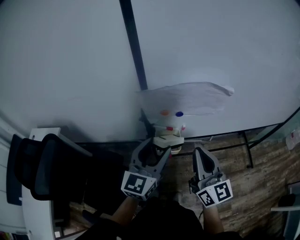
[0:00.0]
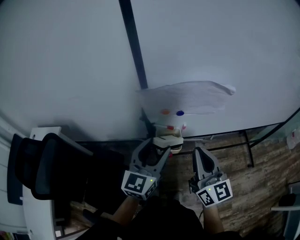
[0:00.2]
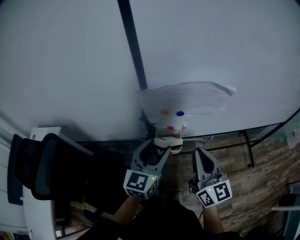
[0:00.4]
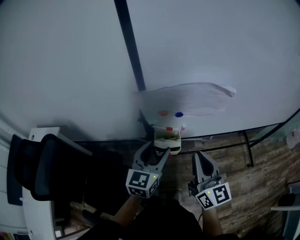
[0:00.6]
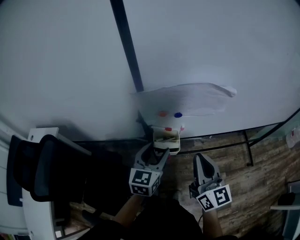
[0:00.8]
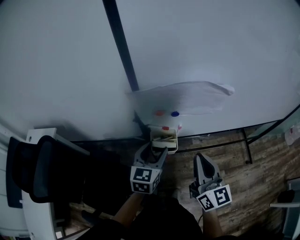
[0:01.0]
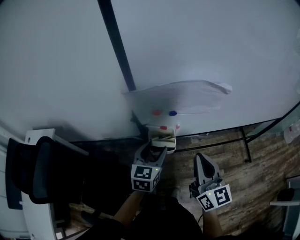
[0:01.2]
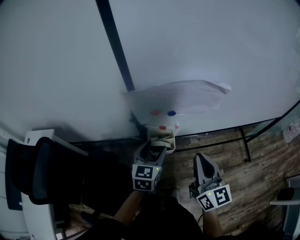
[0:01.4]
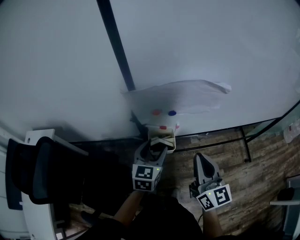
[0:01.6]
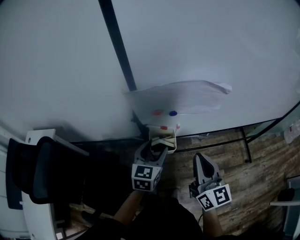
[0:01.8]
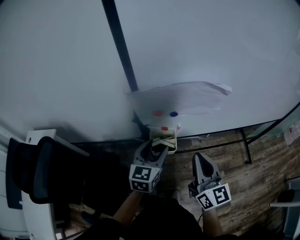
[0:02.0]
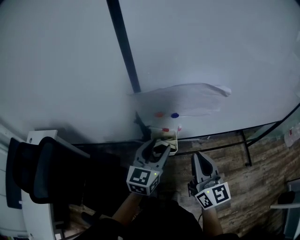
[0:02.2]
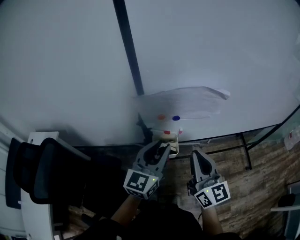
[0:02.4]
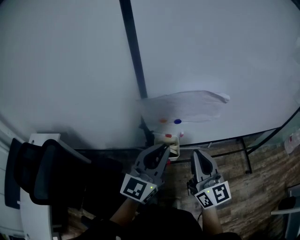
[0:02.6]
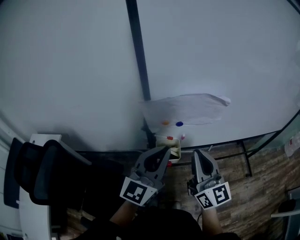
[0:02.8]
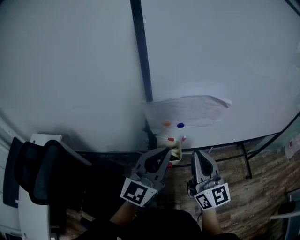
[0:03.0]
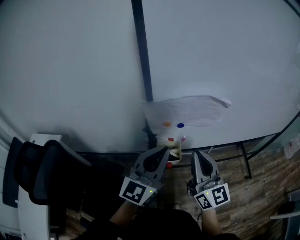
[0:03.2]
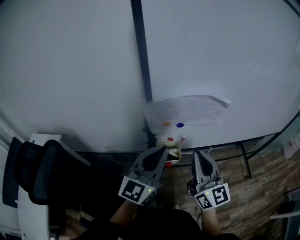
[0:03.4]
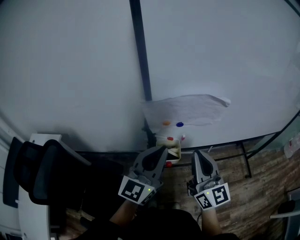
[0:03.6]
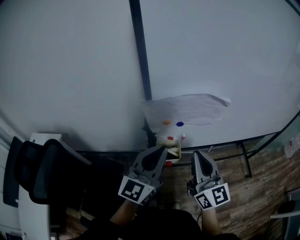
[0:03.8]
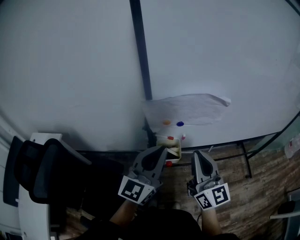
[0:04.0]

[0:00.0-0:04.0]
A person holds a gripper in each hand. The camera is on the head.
0:00.0 to 0:01.4: The left gripper goes about 10 cm downward, and changes its angle by approximately 20 degrees.
0:01.4 to 0:02.6: The left gripper goes approximately 15 cm upward, rotates some 30 degrees, and closes up. The right gripper is displaced upward by roughly 5 cm.
0:02.6 to 0:04.0: The grippers stay close to where they were, moving slightly.

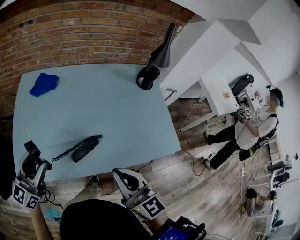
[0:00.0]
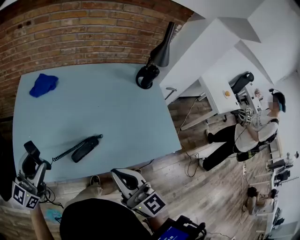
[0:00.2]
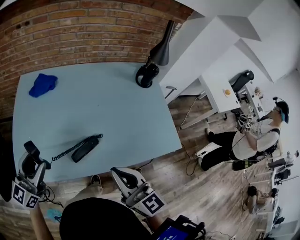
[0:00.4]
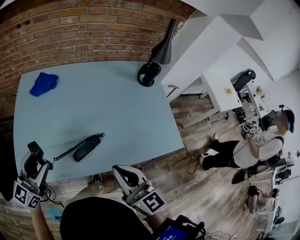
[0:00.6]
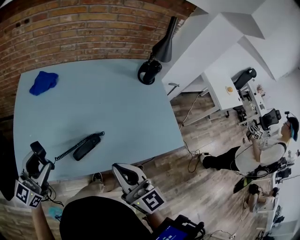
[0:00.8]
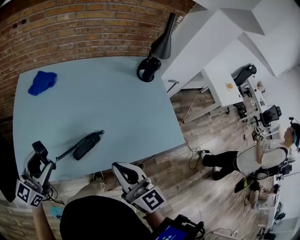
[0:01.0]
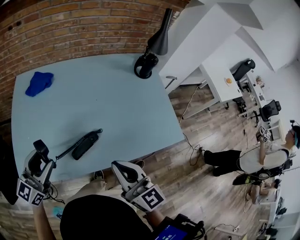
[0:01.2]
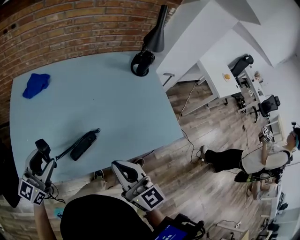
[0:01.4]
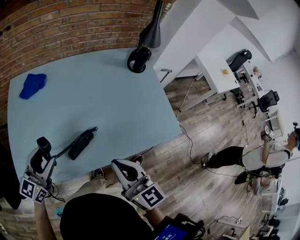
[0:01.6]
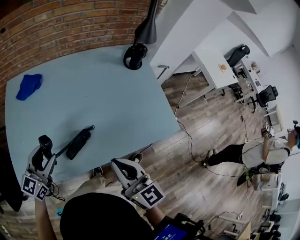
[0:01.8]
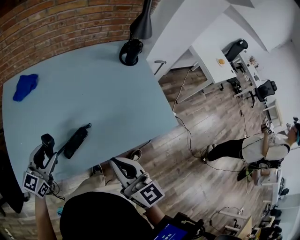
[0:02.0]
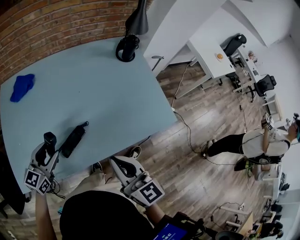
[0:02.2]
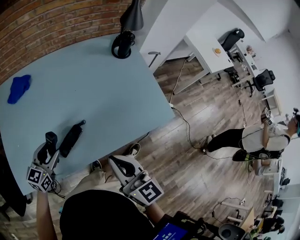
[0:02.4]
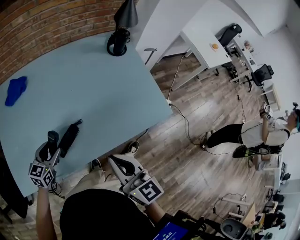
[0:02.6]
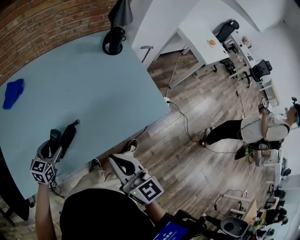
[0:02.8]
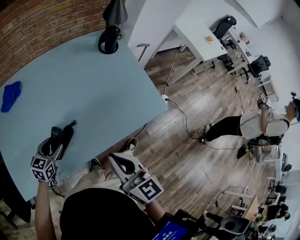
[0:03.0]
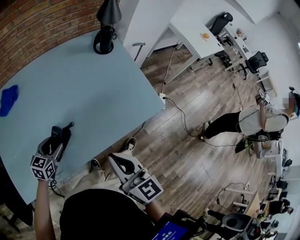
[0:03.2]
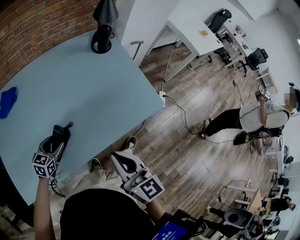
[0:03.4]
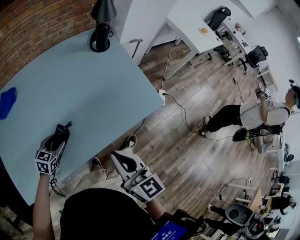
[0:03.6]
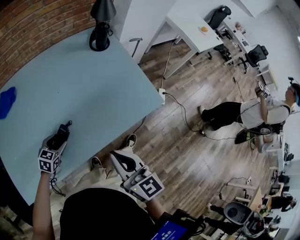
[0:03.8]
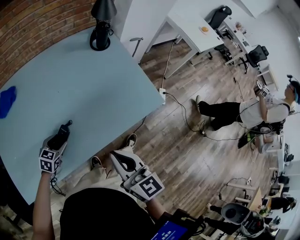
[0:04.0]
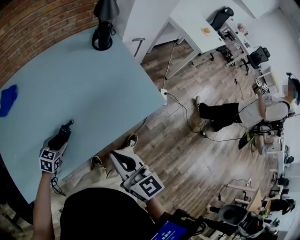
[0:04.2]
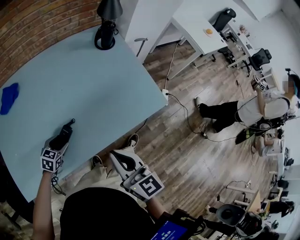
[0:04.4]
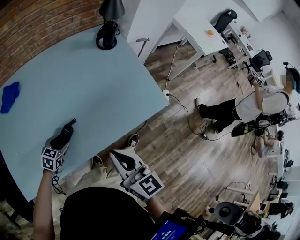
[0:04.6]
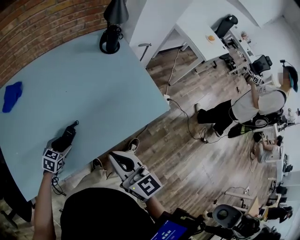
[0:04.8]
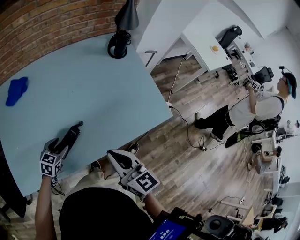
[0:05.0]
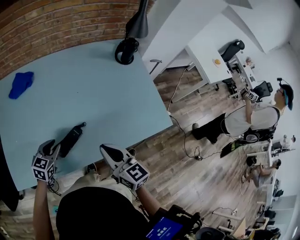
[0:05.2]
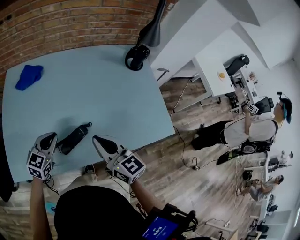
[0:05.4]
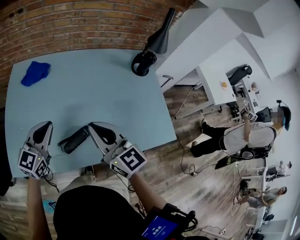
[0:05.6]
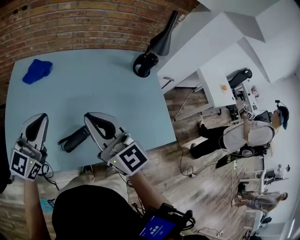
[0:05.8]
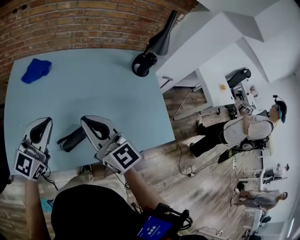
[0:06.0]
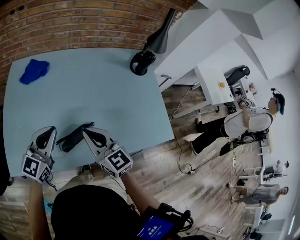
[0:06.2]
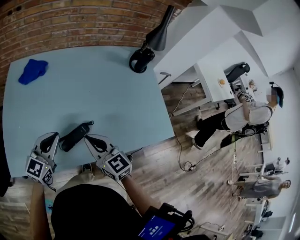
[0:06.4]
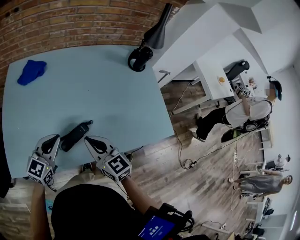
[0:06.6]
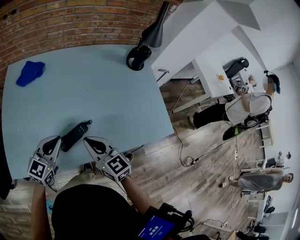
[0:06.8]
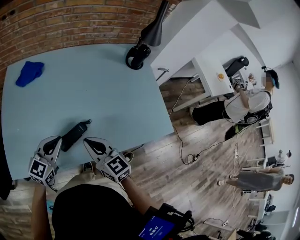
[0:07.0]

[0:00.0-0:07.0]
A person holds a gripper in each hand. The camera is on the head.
0:00.0 to 0:01.4: The left gripper moves approximately 5 cm. Meanwhile the right gripper changes place by some 5 cm.
0:01.4 to 0:02.8: The right gripper goes roughly 5 cm to the right, while the left gripper is displaced downward by some 20 cm, and changes its angle by some 30 degrees.
0:02.8 to 0:04.2: The left gripper moves downward, approximately 5 cm.
0:04.2 to 0:05.6: The left gripper heads upward, covering roughly 25 cm, tips its fingers upward by some 40 degrees, and closes its fingers. Meanwhile the right gripper moves to the left, forward and upward, approximately 20 cm, and changes its angle by about 30 degrees.
0:05.6 to 0:07.0: The right gripper goes some 10 cm downward. Meanwhile the left gripper heads downward and backward, covering some 10 cm.

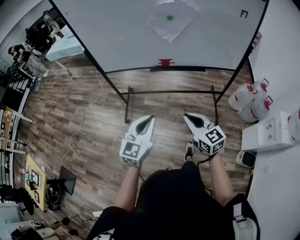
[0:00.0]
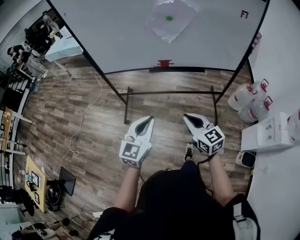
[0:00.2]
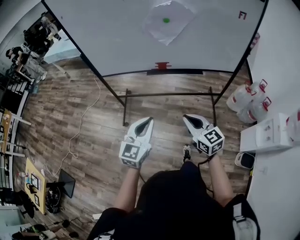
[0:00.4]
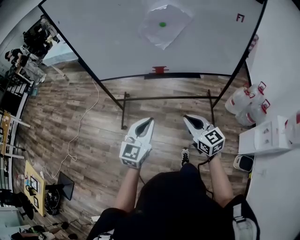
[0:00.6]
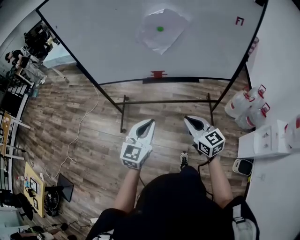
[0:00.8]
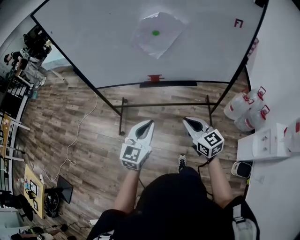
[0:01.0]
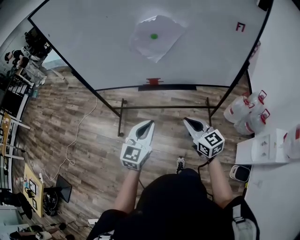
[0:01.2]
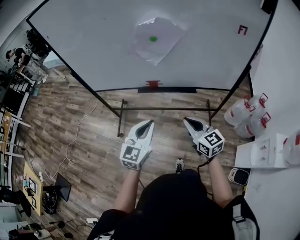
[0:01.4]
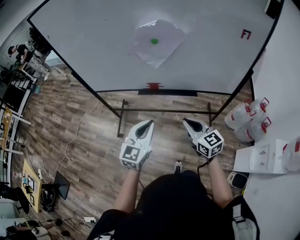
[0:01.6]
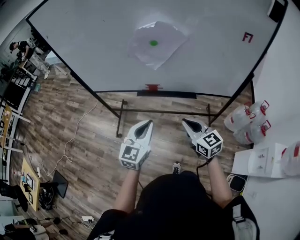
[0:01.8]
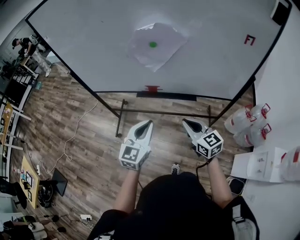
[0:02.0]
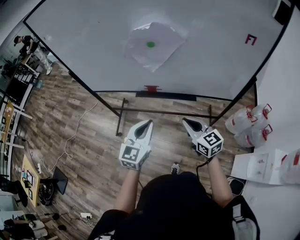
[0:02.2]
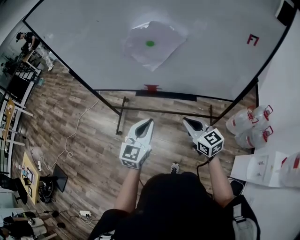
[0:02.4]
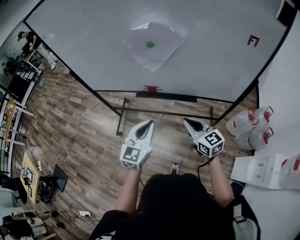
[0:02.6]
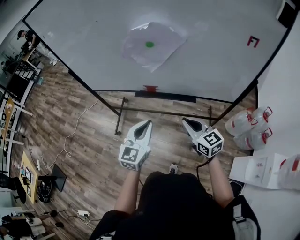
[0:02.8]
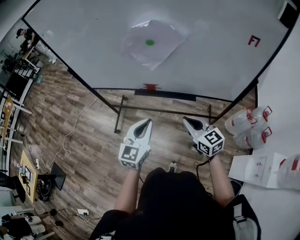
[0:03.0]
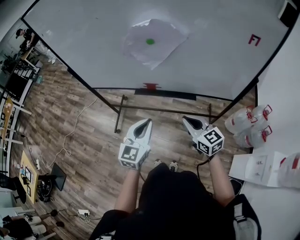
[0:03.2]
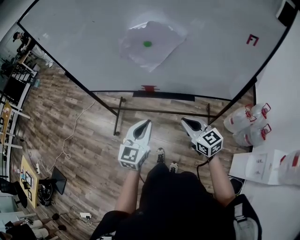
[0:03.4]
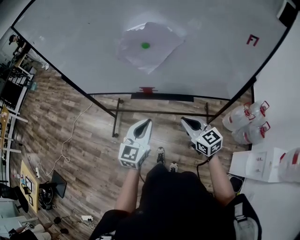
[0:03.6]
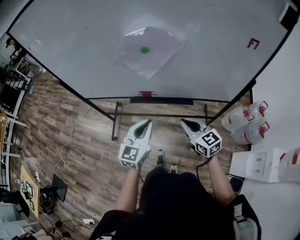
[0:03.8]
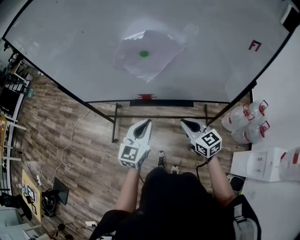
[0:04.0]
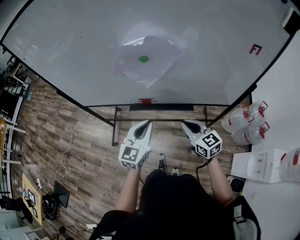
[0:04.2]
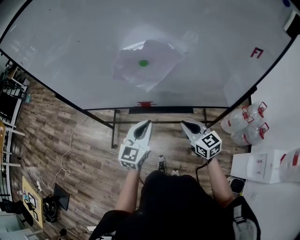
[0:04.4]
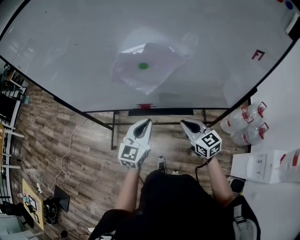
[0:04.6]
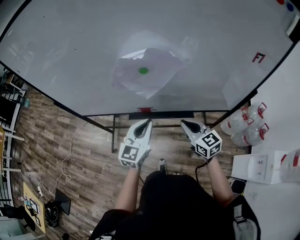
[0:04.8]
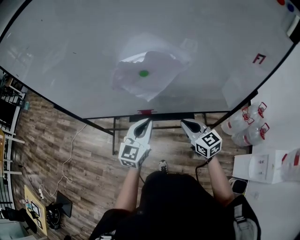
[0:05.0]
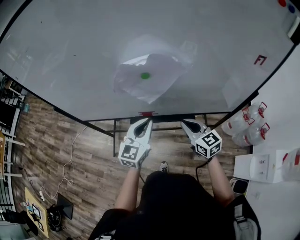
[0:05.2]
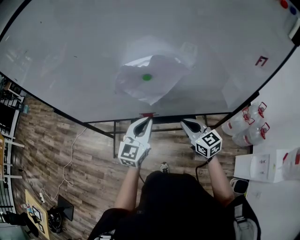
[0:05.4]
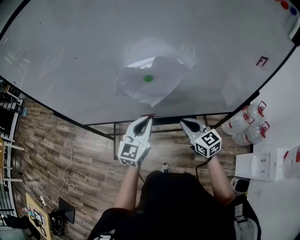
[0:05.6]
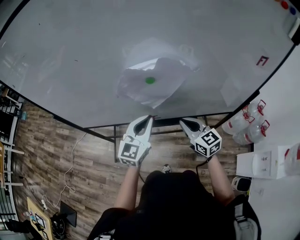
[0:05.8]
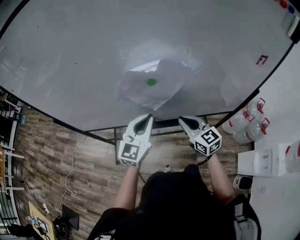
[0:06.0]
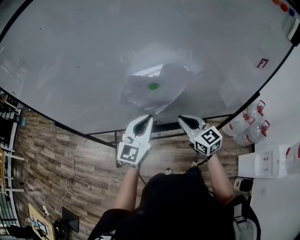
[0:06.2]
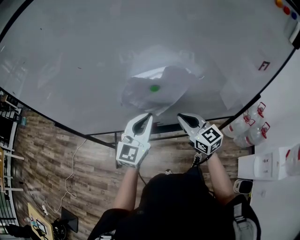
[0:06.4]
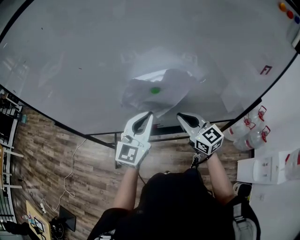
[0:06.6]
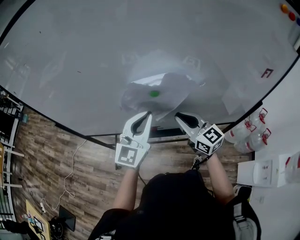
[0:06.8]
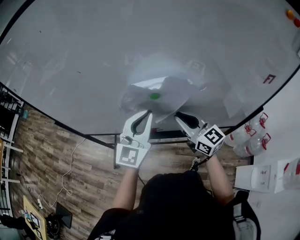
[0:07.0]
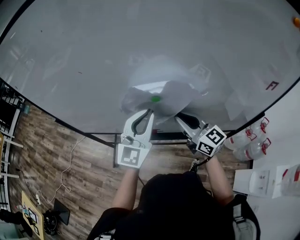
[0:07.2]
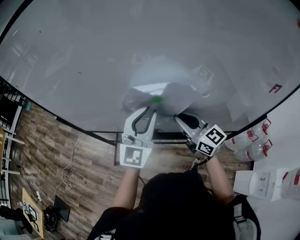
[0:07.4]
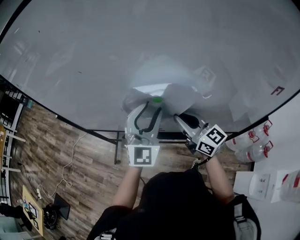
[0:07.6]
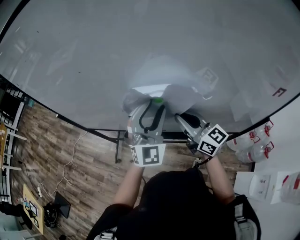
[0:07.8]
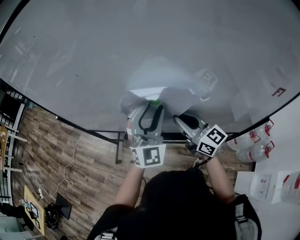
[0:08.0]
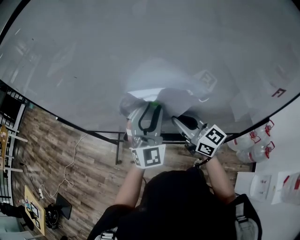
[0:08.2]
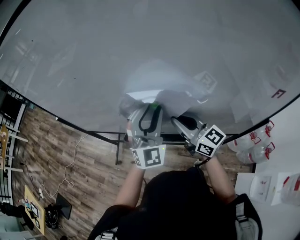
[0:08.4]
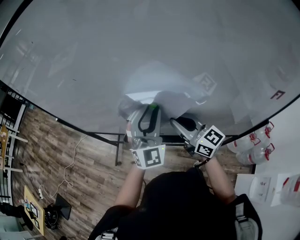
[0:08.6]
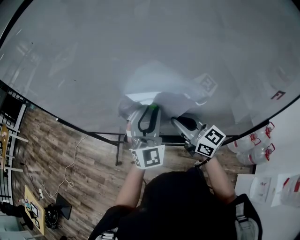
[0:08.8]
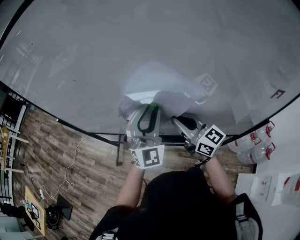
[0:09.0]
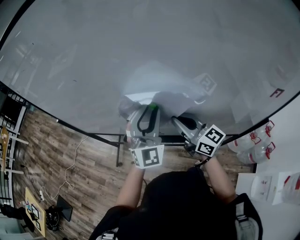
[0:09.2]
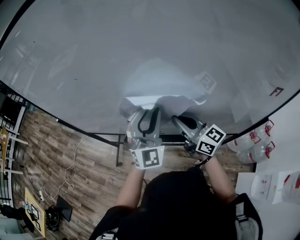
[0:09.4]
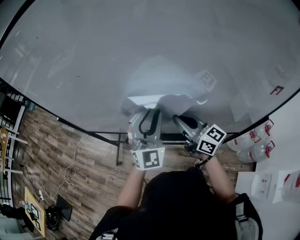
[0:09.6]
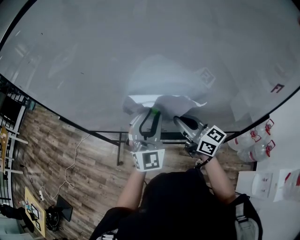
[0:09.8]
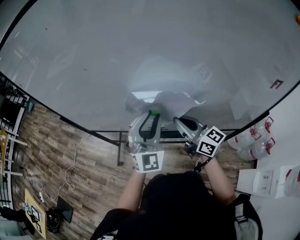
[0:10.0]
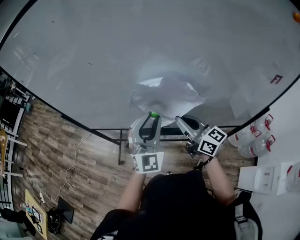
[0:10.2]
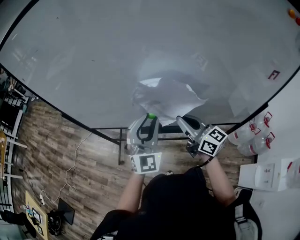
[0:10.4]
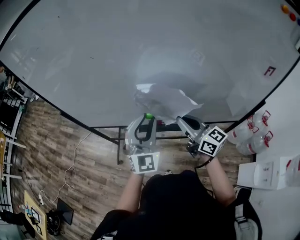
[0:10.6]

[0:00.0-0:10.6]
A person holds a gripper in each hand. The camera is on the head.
0:00.0 to 0:01.6: Both grippers travel together forward and to the right, approximately 20 cm.
0:01.6 to 0:03.0: The left gripper ends up about 5 cm from where it was. The right gripper goes some 10 cm forward and to the right.
0:03.0 to 0:04.6: Both grippers move forward, some 15 cm.
0:04.6 to 0:06.0: Both grippers travel together forward, roughly 10 cm.
0:06.0 to 0:07.6: The two grippers go approximately 10 cm upward and forward. The left gripper swivels approximately 30 degrees, and opens up; the right gripper swivels approximately 20 degrees.
0:07.6 to 0:09.0: The grippers stay close to where they were, moving slightly.
0:09.0 to 0:10.6: The left gripper goes roughly 10 cm to the left and backward. Meanwhile the right gripper is displaced backward by about 5 cm.

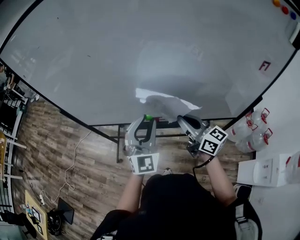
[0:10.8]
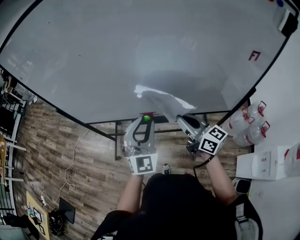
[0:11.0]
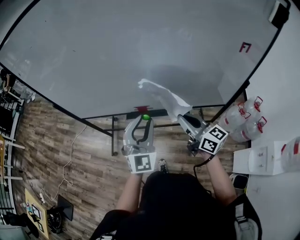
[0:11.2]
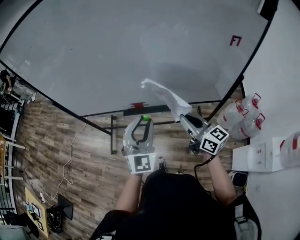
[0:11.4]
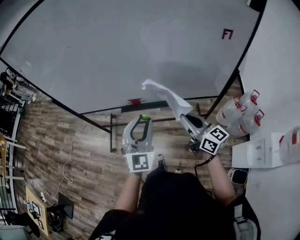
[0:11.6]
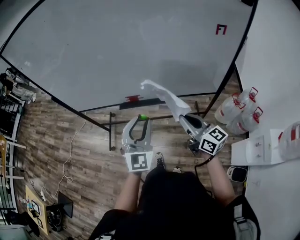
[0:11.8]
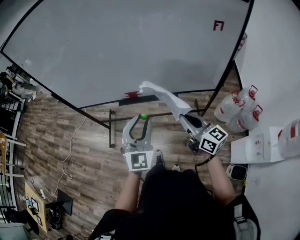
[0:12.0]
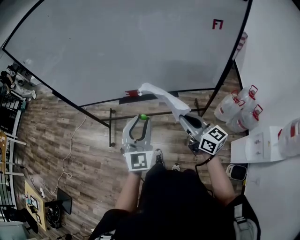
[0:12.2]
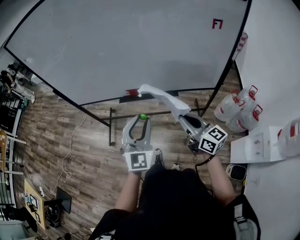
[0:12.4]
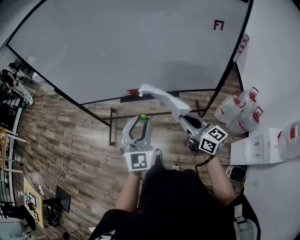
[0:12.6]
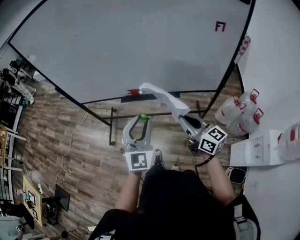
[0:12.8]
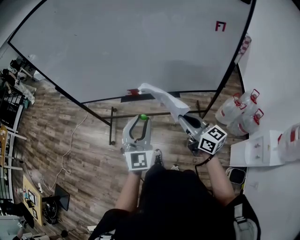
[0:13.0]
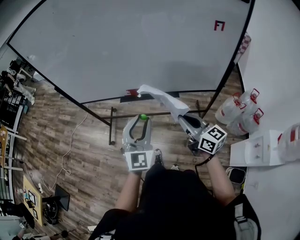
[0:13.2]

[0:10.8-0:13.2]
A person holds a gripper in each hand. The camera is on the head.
0:10.8 to 0:12.0: The left gripper is displaced backward by roughly 20 cm; the right gripper goes approximately 25 cm backward and to the right.
0:12.0 to 0:13.2: The grippers stay close to where they were, moving slightly.
